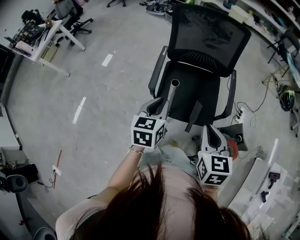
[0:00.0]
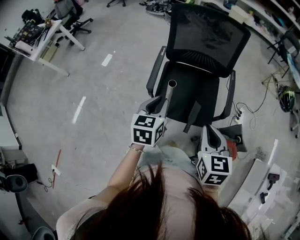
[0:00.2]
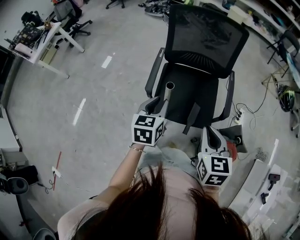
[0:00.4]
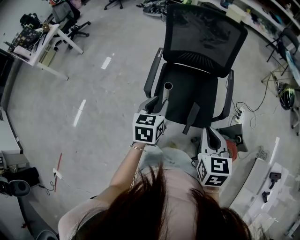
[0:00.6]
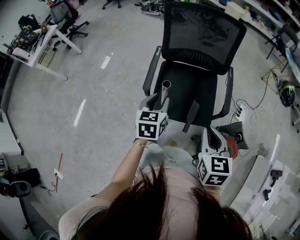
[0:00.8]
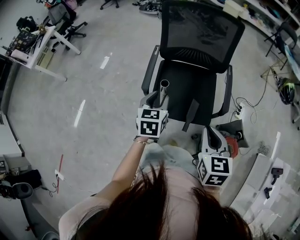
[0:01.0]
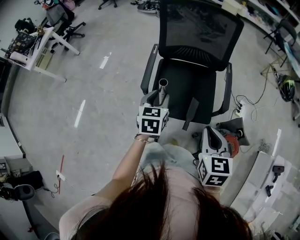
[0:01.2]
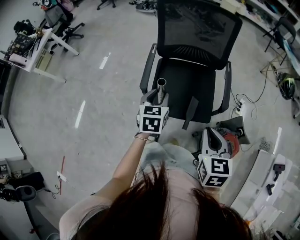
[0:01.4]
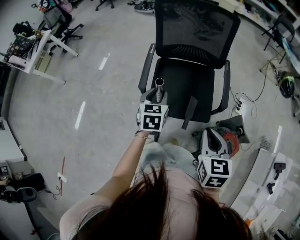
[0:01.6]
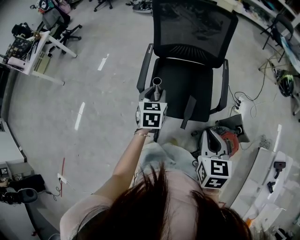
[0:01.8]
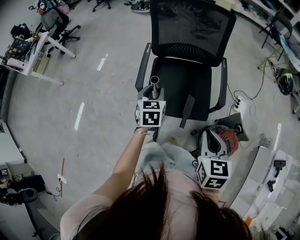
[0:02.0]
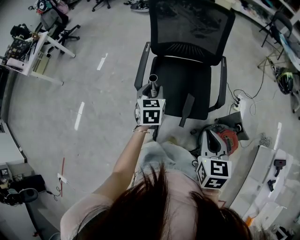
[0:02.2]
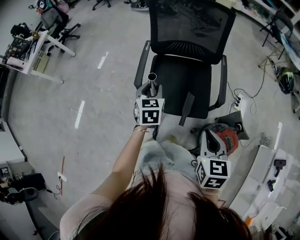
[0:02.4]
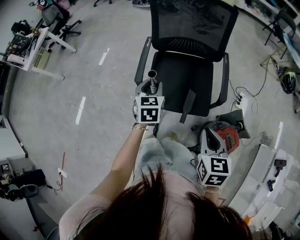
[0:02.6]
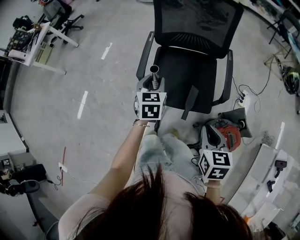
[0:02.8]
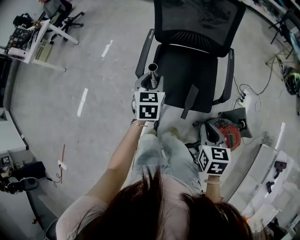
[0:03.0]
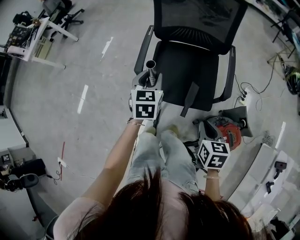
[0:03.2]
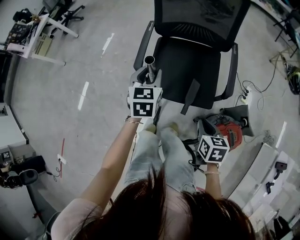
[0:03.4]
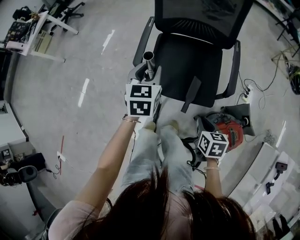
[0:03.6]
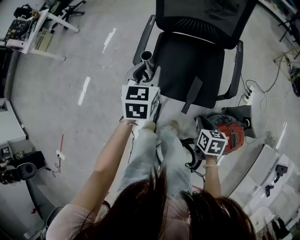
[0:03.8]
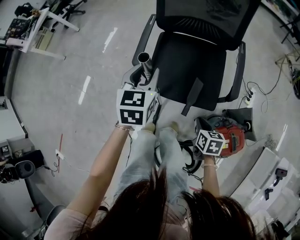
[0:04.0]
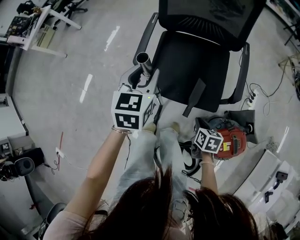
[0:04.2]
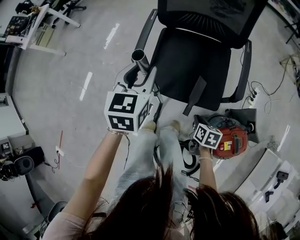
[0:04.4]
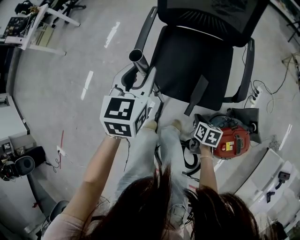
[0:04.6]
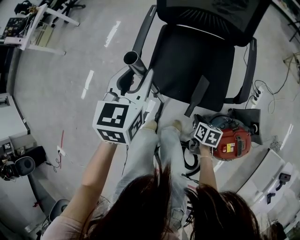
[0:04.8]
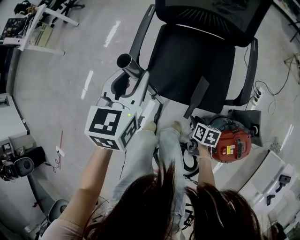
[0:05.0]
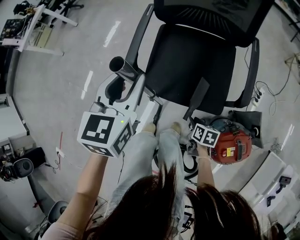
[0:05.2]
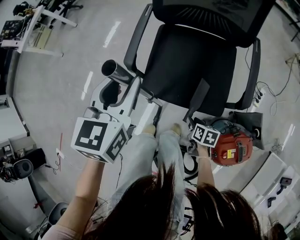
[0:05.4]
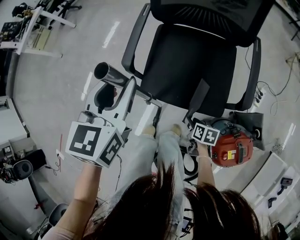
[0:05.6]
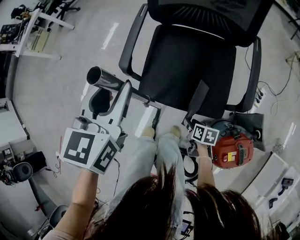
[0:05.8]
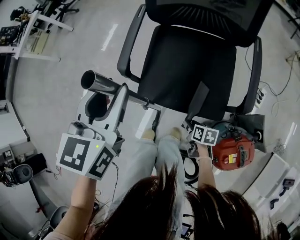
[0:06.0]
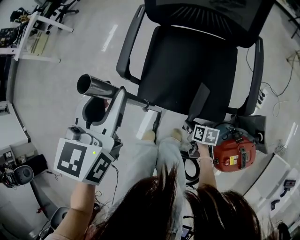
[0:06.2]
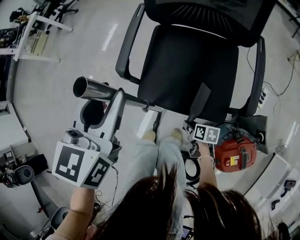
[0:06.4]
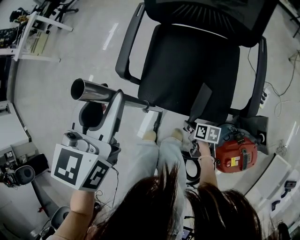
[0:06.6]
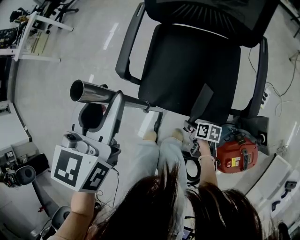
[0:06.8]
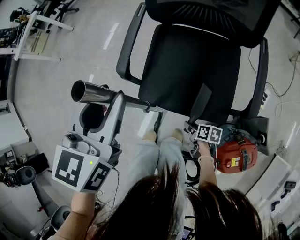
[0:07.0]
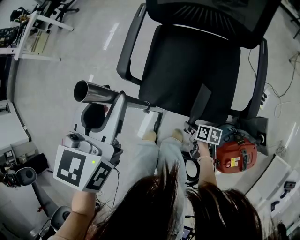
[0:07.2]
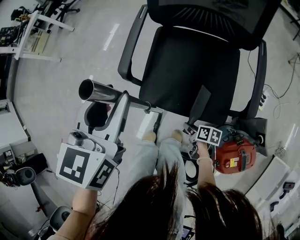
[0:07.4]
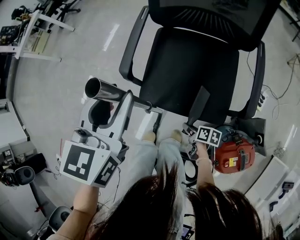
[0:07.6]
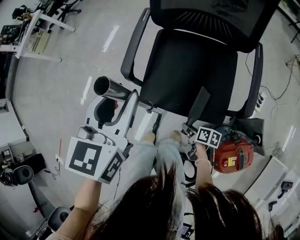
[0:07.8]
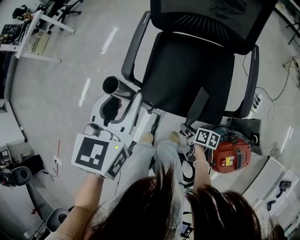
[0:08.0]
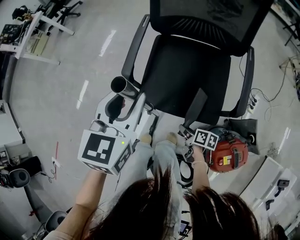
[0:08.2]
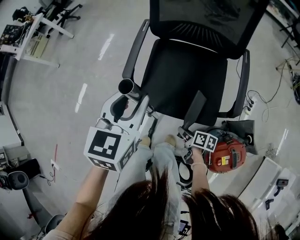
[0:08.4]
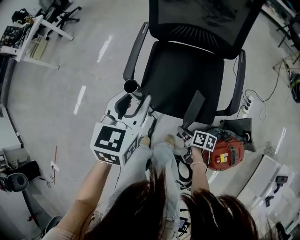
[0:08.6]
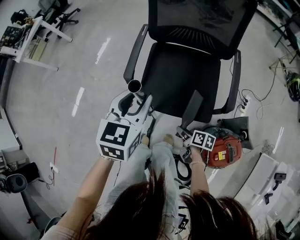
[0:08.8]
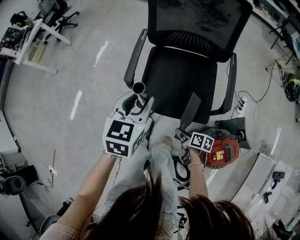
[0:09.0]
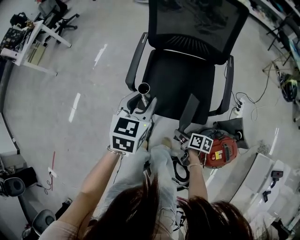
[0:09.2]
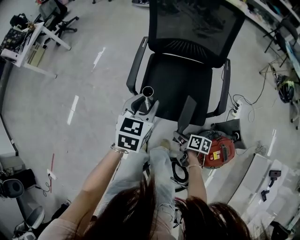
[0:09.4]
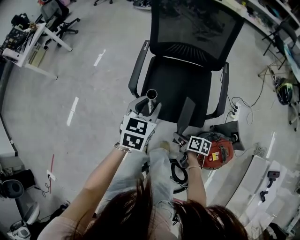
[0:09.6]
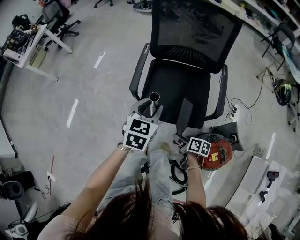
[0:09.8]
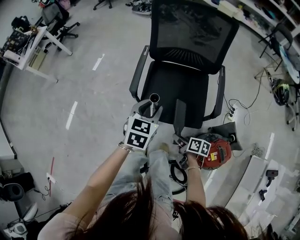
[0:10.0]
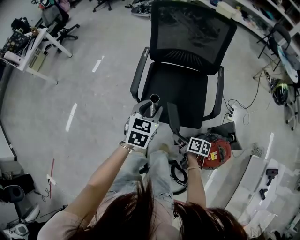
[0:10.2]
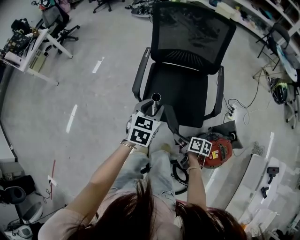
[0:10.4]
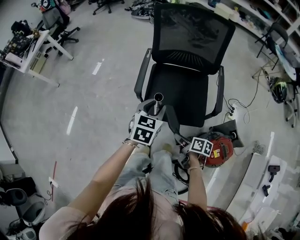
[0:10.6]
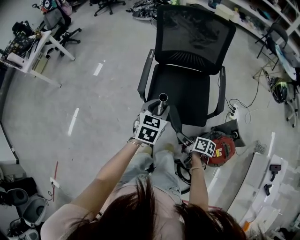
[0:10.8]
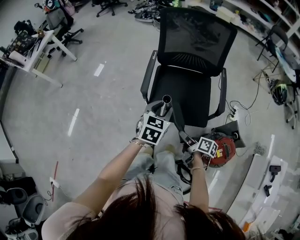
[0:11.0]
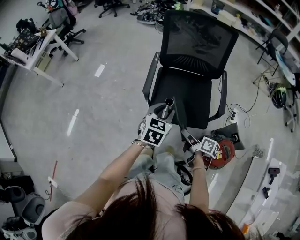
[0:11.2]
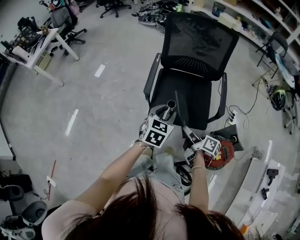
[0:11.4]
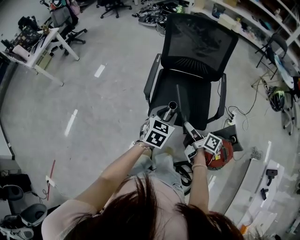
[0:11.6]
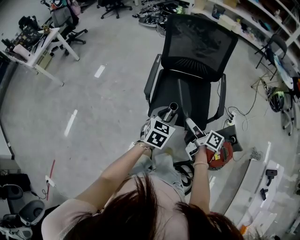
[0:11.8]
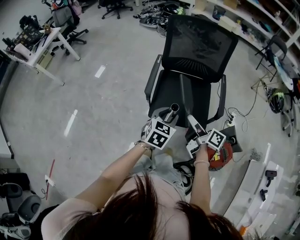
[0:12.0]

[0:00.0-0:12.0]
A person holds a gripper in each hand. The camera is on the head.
0:00.0 to 0:01.6: The right gripper moves to the right, some 5 cm, while the left gripper goes some 10 cm downward and forward, and opens.
0:01.6 to 0:03.0: The right gripper moves downward, approximately 10 cm.
0:03.0 to 0:04.4: The right gripper moves downward, approximately 30 cm, and turns by about 30 degrees.
0:04.4 to 0:06.0: The right gripper goes some 15 cm downward, and opens its fingers.
0:06.0 to 0:07.6: The grippers move only a little.
0:07.6 to 0:09.0: The right gripper goes about 15 cm upward.
0:09.0 to 0:10.4: The right gripper heads upward, covering approximately 15 cm.
0:10.4 to 0:12.0: The right gripper heads upward, covering some 20 cm, and points its fingers some 30 degrees further upward. Meanwhile the left gripper is displaced backward by some 5 cm.

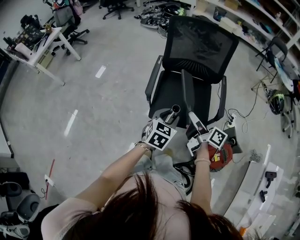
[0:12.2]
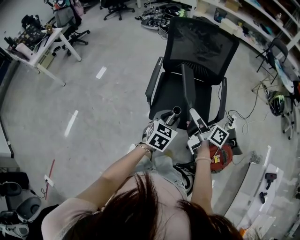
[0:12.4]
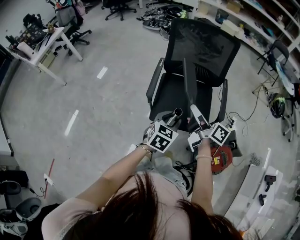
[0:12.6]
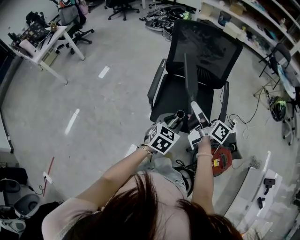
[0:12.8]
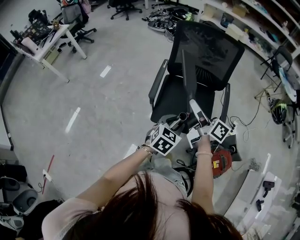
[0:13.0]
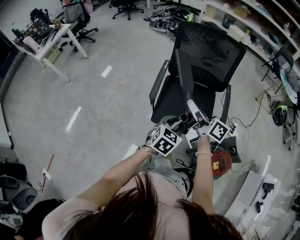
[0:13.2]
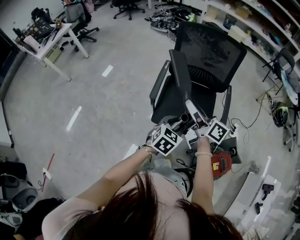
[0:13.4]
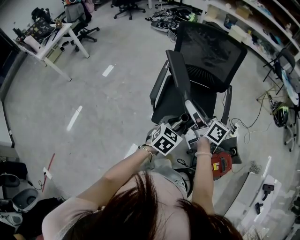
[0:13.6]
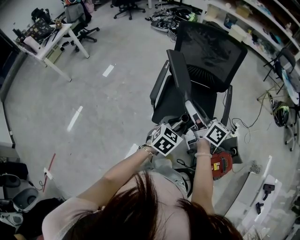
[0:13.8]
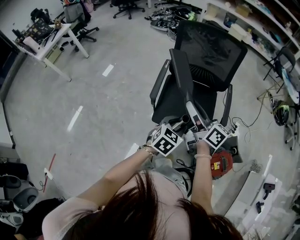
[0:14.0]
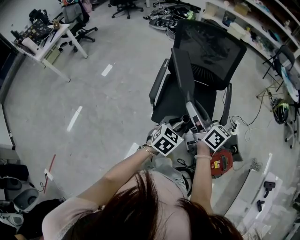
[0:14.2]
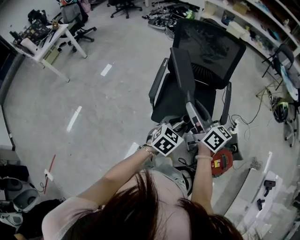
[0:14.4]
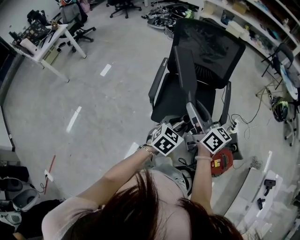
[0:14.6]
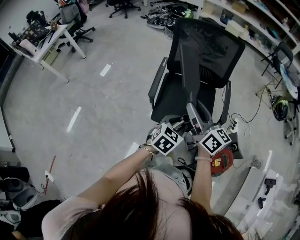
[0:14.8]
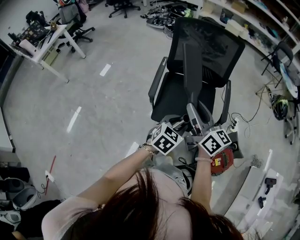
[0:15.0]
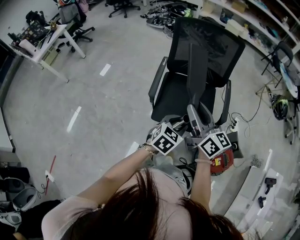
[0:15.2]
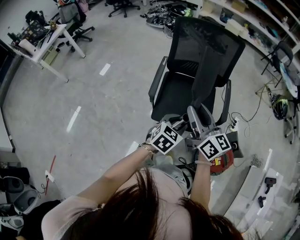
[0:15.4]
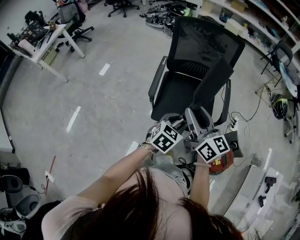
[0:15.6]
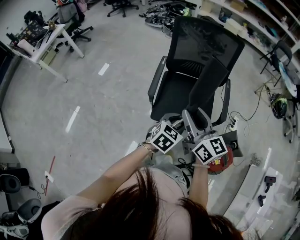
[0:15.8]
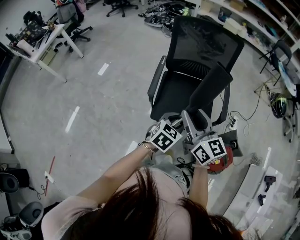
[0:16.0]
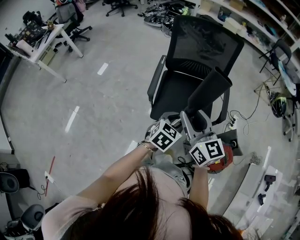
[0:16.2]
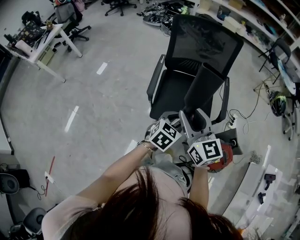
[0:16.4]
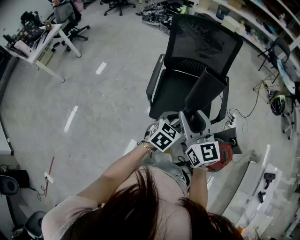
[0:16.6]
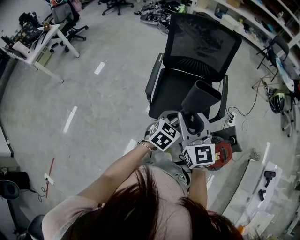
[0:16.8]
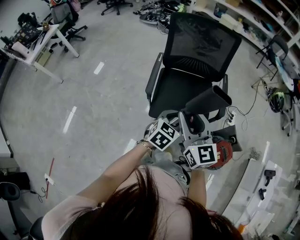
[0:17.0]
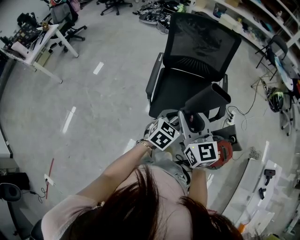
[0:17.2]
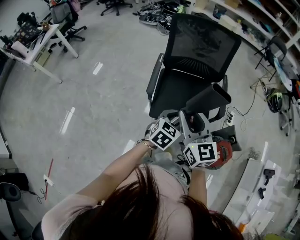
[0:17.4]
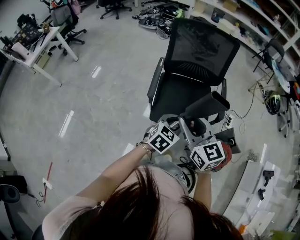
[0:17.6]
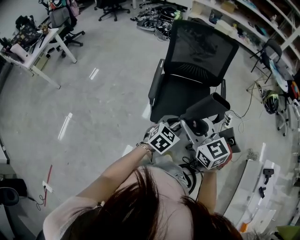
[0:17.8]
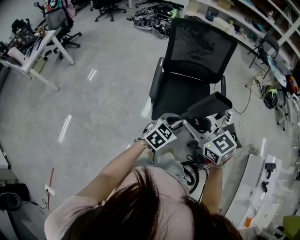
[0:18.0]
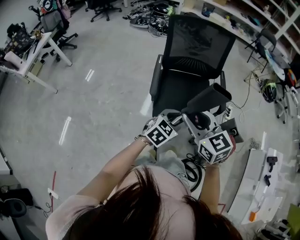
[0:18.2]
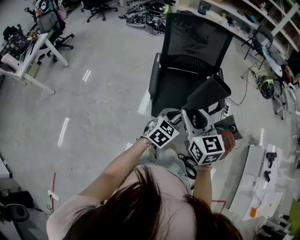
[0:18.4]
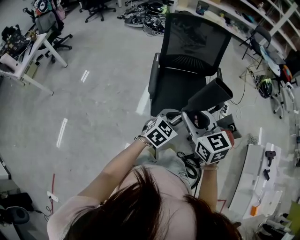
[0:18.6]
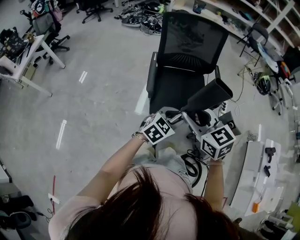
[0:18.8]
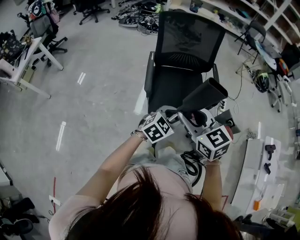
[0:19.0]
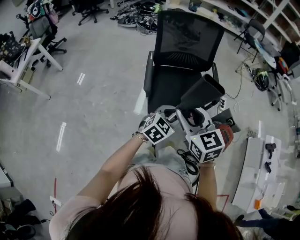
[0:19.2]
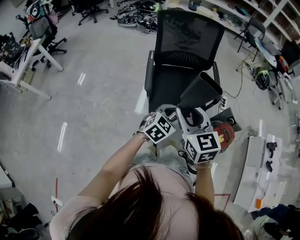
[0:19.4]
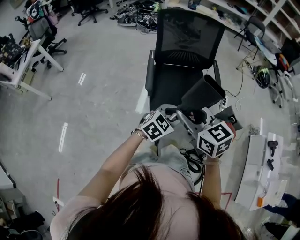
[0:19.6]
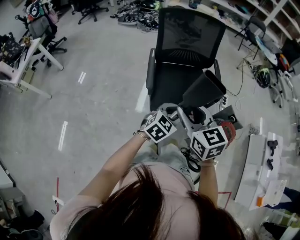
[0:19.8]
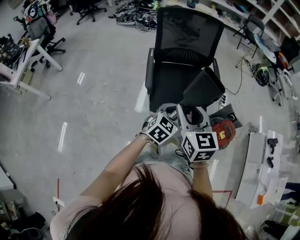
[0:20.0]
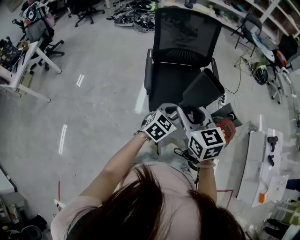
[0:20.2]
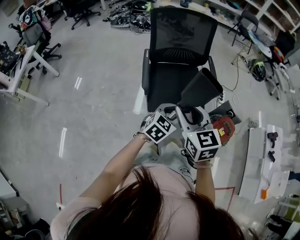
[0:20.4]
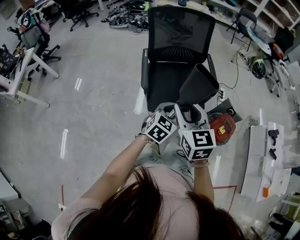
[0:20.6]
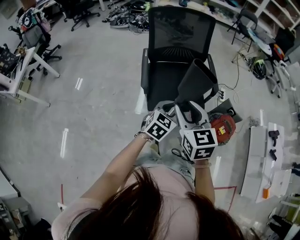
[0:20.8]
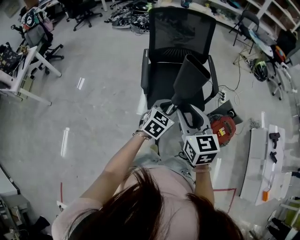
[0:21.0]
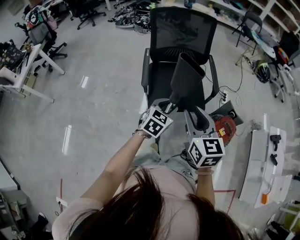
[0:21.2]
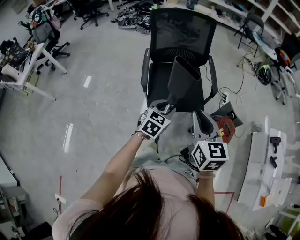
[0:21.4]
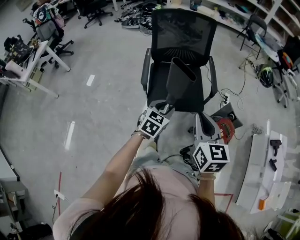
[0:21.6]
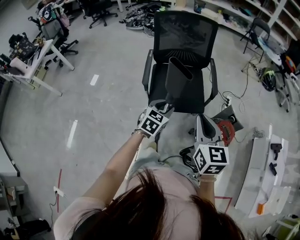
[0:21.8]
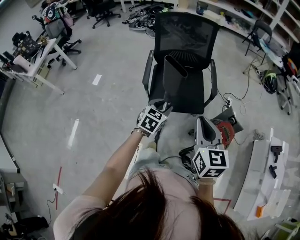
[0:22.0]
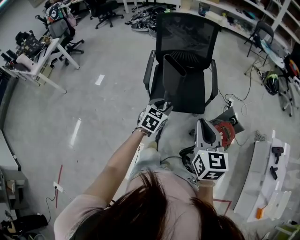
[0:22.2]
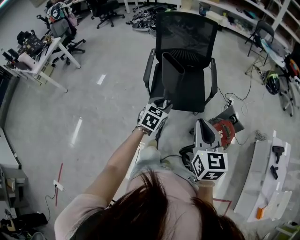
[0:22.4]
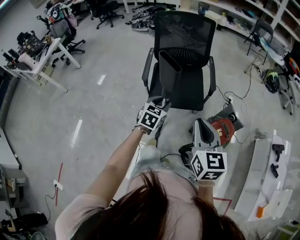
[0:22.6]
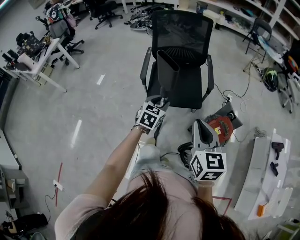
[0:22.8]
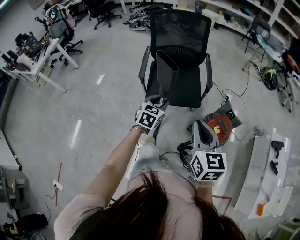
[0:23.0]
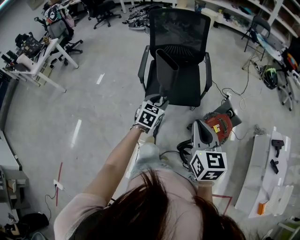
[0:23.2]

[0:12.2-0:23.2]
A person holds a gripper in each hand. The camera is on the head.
0:12.2 to 0:13.8: The right gripper travels upward and forward by about 10 cm, and swivels some 20 degrees.
0:13.8 to 0:15.4: The right gripper turns by some 30 degrees.
0:15.4 to 0:17.0: The right gripper turns by approximately 30 degrees.
0:17.0 to 0:18.4: The two grippers go roughly 5 cm to the left.
0:18.4 to 0:20.0: The grippers stay close to where they were, moving slightly.
0:20.0 to 0:21.6: The right gripper goes some 15 cm to the right, and closes.
0:21.6 to 0:23.2: The right gripper travels to the right and backward by roughly 15 cm; the left gripper is displaced to the right by roughly 5 cm.

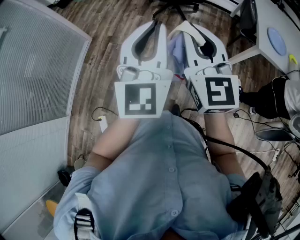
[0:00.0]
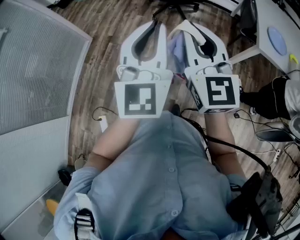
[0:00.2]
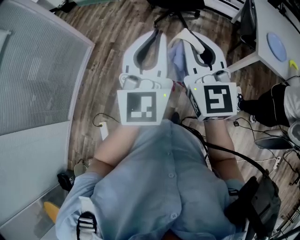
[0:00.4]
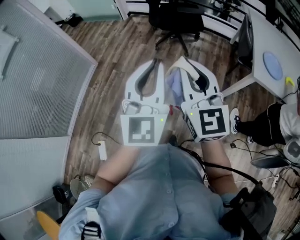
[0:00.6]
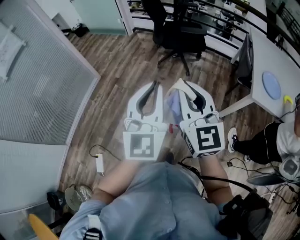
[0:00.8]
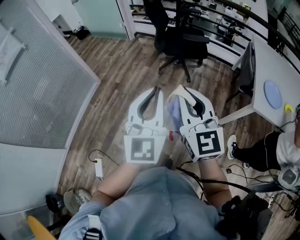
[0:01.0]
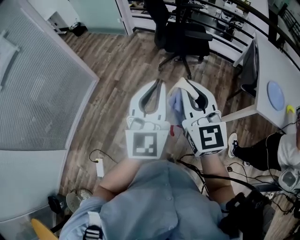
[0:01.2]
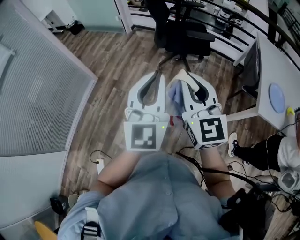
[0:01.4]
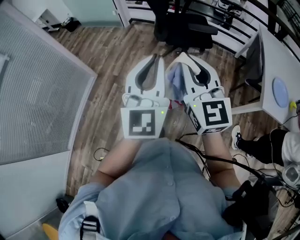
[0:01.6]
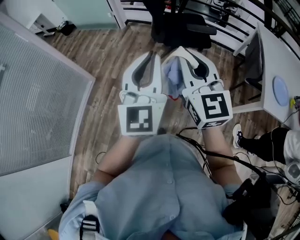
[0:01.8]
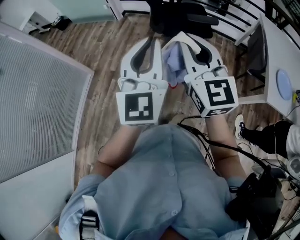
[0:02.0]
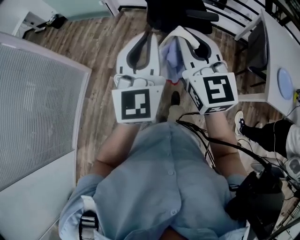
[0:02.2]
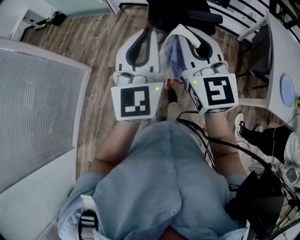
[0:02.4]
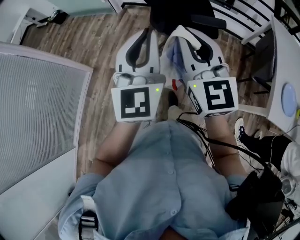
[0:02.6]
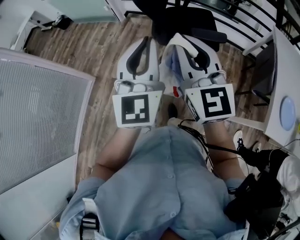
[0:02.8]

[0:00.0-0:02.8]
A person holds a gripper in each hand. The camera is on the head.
0:00.0 to 0:01.4: The grippers both shift forward by about 20 cm.
0:01.4 to 0:02.8: The grippers both shift forward by some 30 cm.
